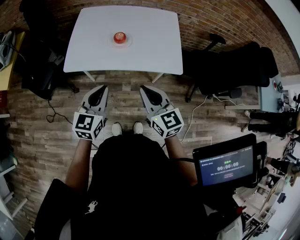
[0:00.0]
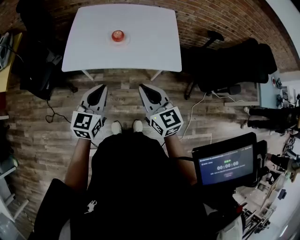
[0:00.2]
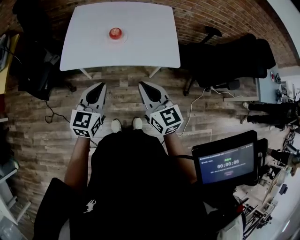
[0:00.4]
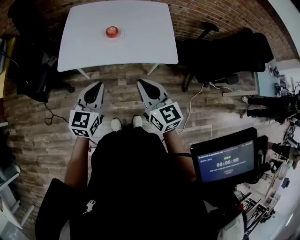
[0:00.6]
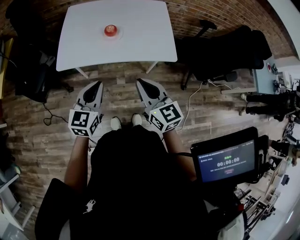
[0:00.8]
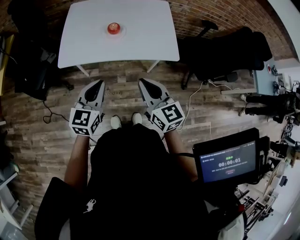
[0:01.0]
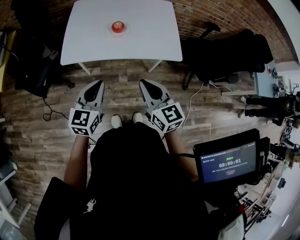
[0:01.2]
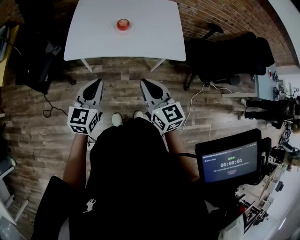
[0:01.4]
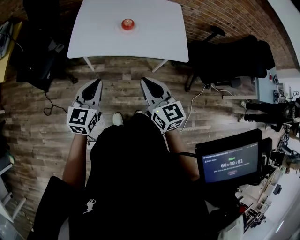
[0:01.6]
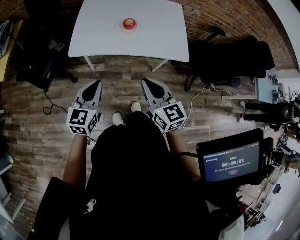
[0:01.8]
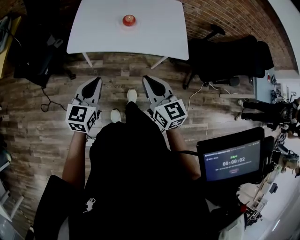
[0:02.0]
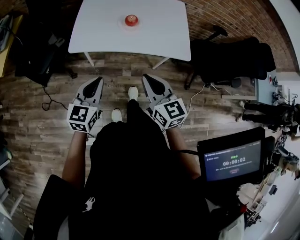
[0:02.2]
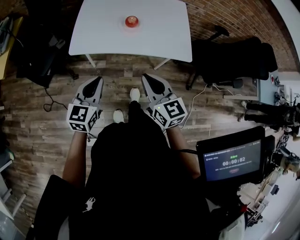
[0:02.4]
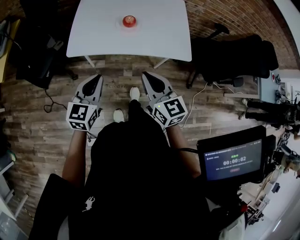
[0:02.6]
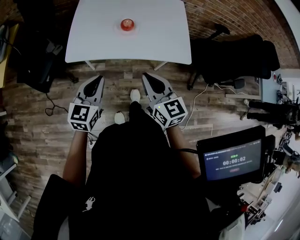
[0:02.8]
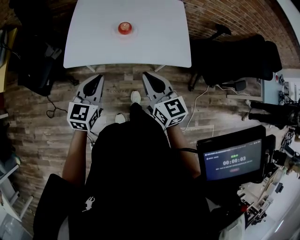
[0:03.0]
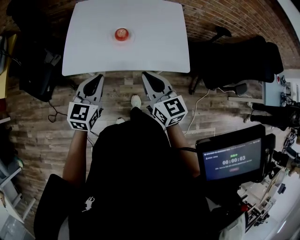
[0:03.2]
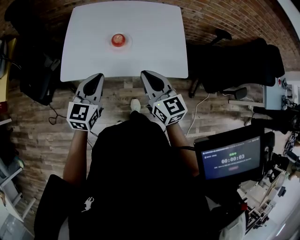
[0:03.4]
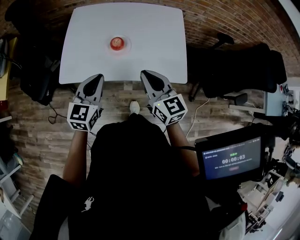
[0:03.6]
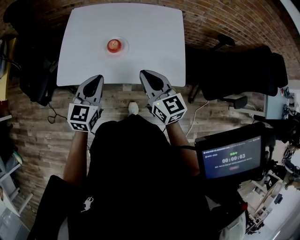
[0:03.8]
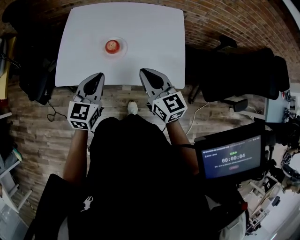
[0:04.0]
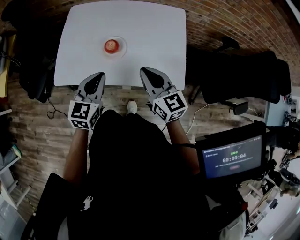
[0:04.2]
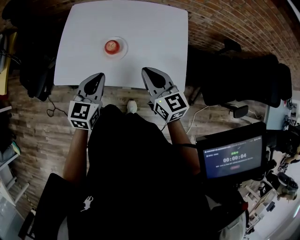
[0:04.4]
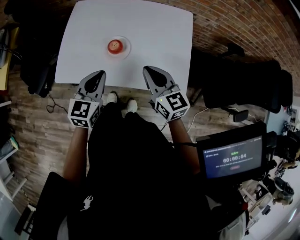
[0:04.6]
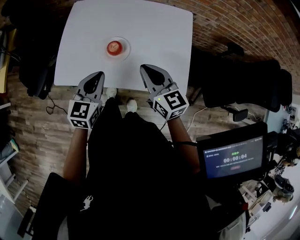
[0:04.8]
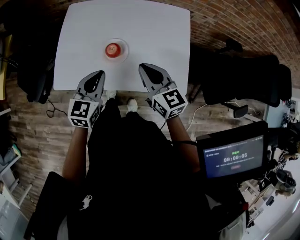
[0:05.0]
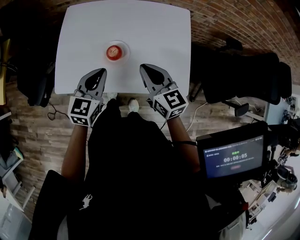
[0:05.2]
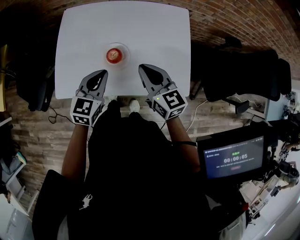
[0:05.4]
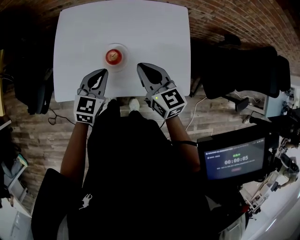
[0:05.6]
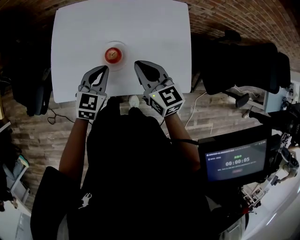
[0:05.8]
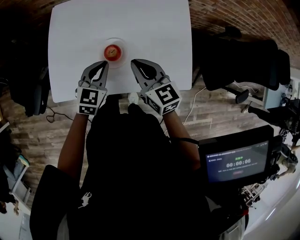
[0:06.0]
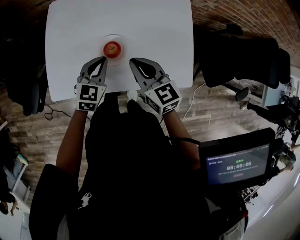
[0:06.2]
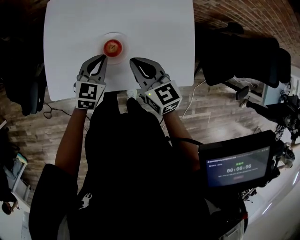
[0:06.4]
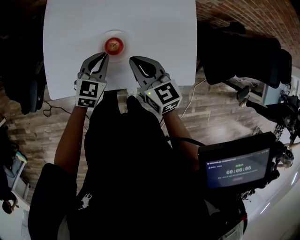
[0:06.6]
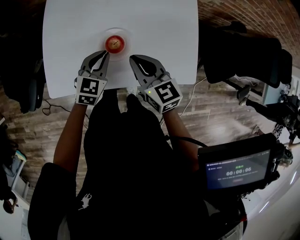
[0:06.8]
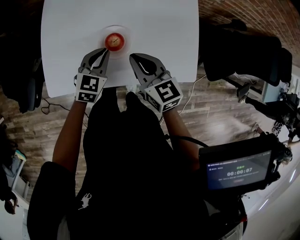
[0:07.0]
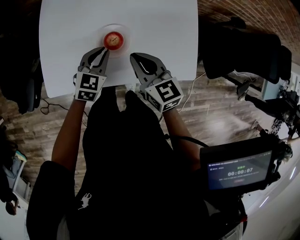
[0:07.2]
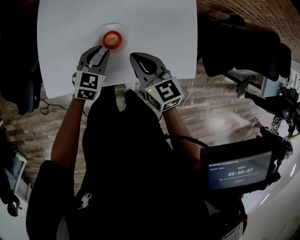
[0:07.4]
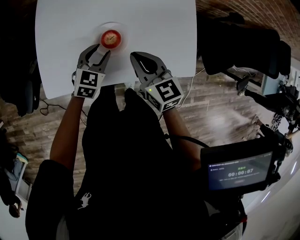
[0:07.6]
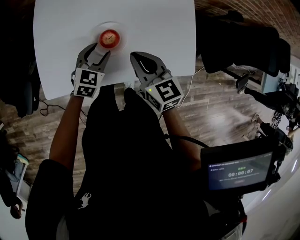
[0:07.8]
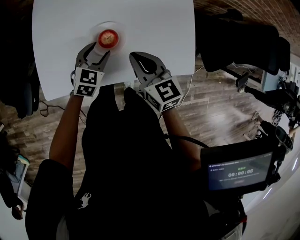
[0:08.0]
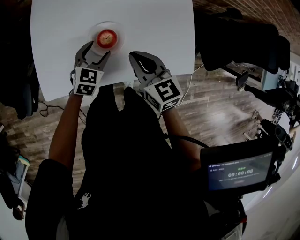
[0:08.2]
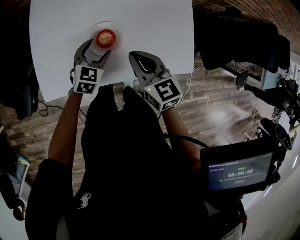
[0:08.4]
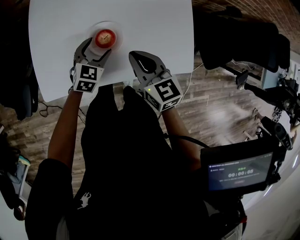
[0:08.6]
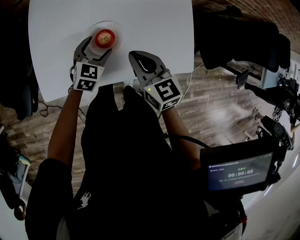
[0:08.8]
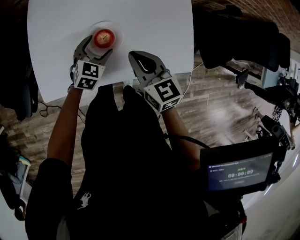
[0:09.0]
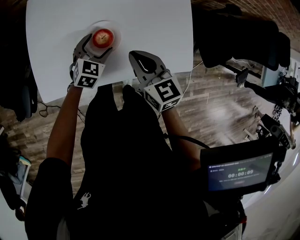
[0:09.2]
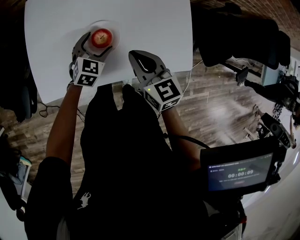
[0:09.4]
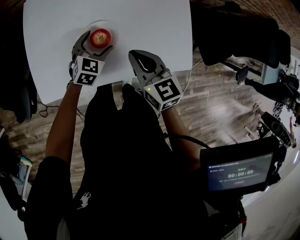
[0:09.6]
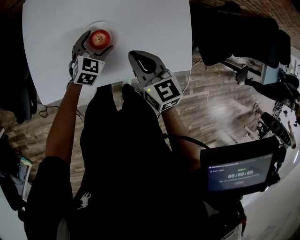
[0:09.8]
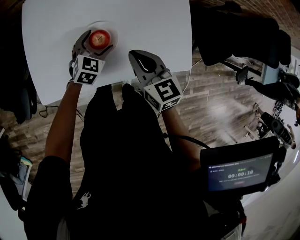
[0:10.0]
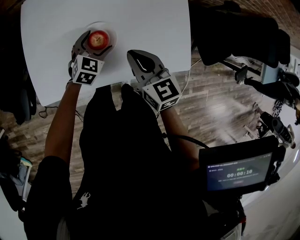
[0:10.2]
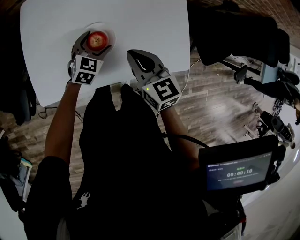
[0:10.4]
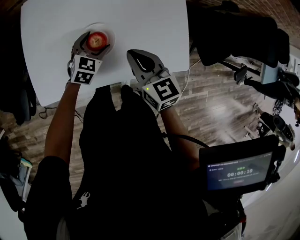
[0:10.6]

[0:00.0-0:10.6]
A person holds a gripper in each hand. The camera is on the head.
0:00.0 to 0:01.6: The two grippers go roughly 5 cm to the left.
0:01.6 to 0:03.0: Both grippers travel together forward, approximately 10 cm.
0:03.0 to 0:04.6: Both grippers travel together forward and to the right, about 20 cm.
0:04.6 to 0:06.0: The right gripper moves forward and to the left, approximately 10 cm; the left gripper heads forward and downward, covering roughly 15 cm.
0:06.0 to 0:07.6: The left gripper is displaced downward by roughly 10 cm, and opens its fingers.
0:07.6 to 0:09.0: The left gripper opens.
0:09.0 to 0:10.6: There are only small adjustments of the grippers.

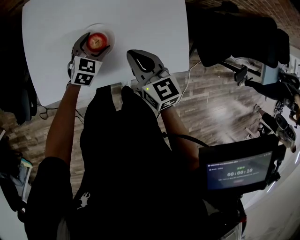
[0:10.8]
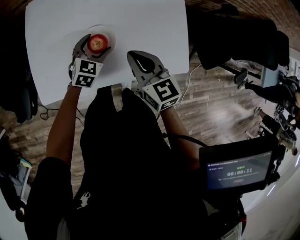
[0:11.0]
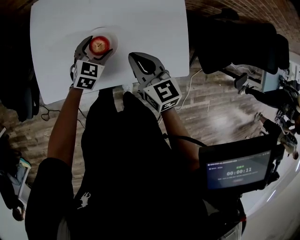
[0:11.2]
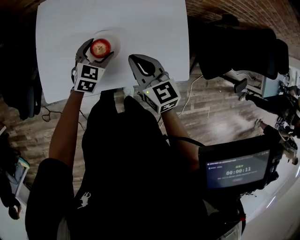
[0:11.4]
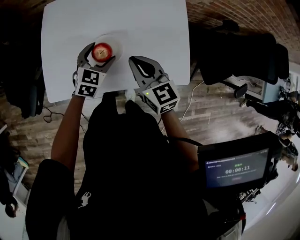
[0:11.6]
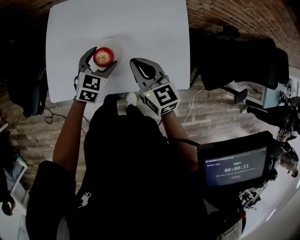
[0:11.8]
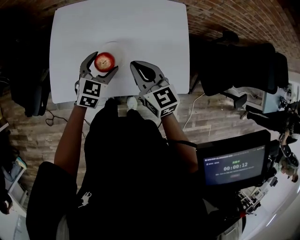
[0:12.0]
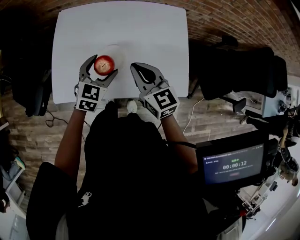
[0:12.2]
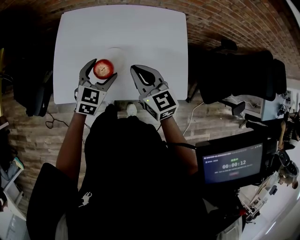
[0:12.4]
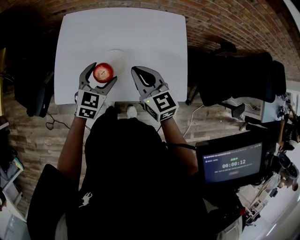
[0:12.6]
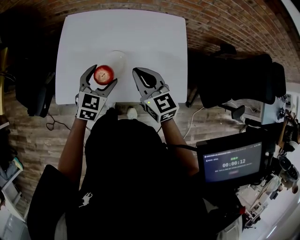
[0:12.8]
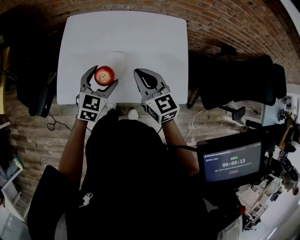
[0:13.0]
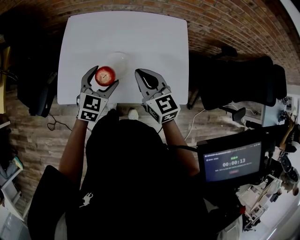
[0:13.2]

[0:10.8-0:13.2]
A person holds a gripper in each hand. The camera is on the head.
0:10.8 to 0:12.0: The right gripper is displaced upward by roughly 5 cm, while the left gripper moves upward, approximately 10 cm.
0:12.0 to 0:13.2: The left gripper moves roughly 5 cm.

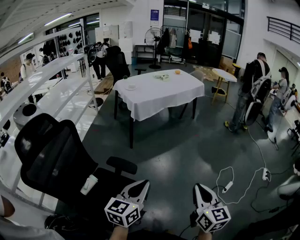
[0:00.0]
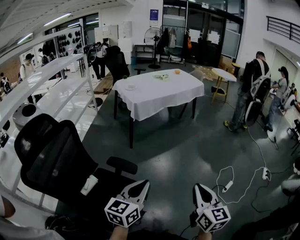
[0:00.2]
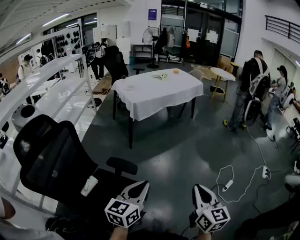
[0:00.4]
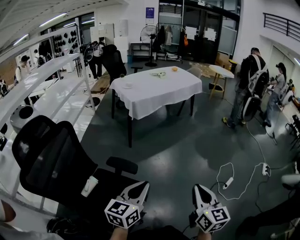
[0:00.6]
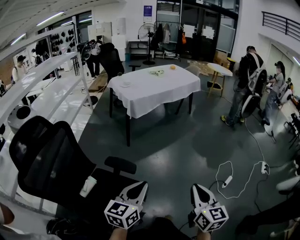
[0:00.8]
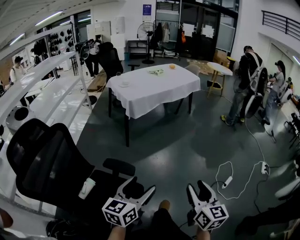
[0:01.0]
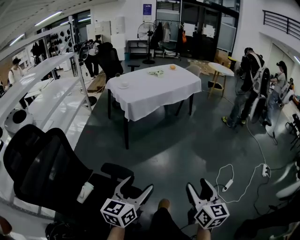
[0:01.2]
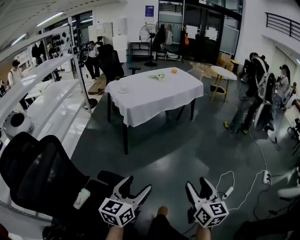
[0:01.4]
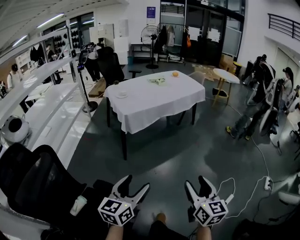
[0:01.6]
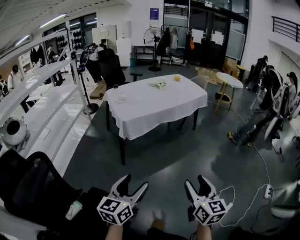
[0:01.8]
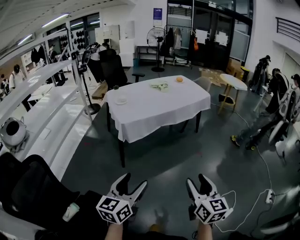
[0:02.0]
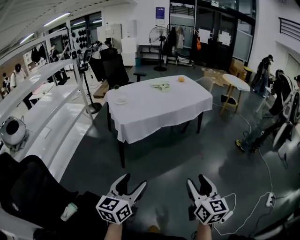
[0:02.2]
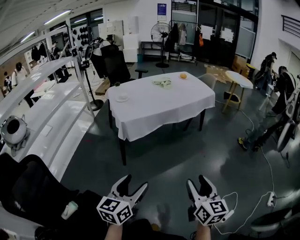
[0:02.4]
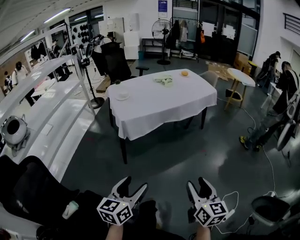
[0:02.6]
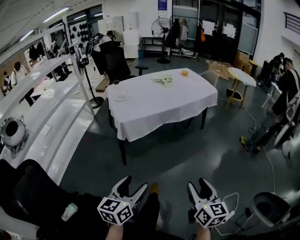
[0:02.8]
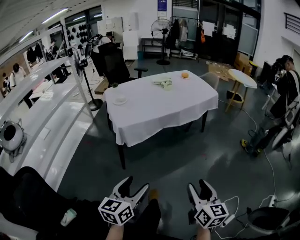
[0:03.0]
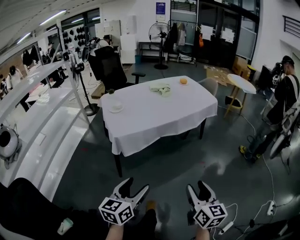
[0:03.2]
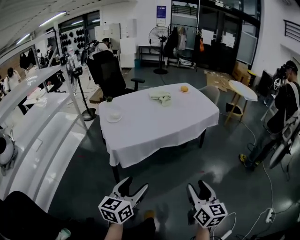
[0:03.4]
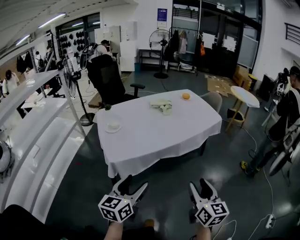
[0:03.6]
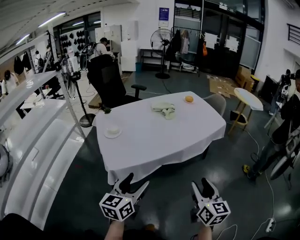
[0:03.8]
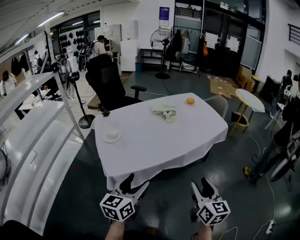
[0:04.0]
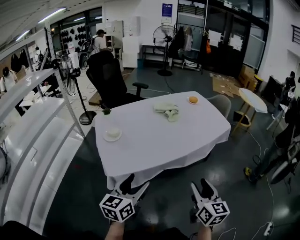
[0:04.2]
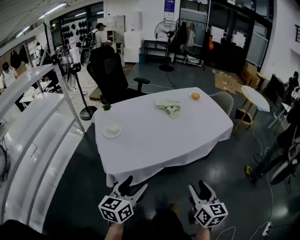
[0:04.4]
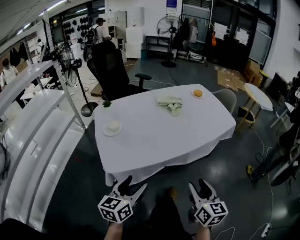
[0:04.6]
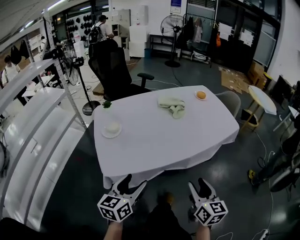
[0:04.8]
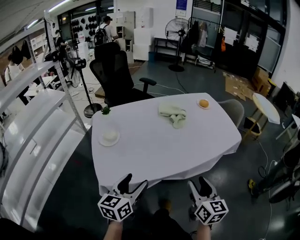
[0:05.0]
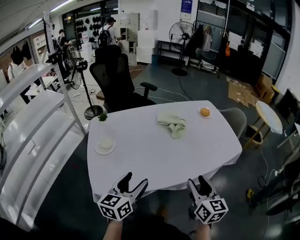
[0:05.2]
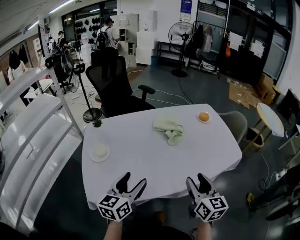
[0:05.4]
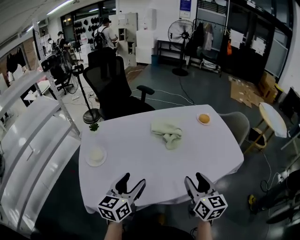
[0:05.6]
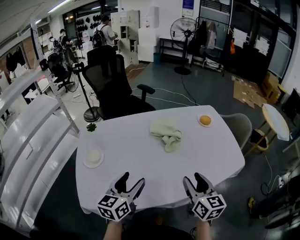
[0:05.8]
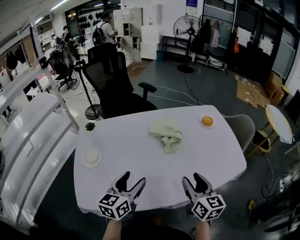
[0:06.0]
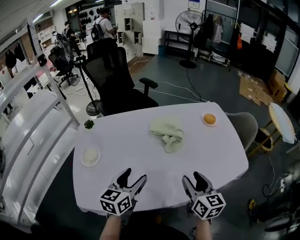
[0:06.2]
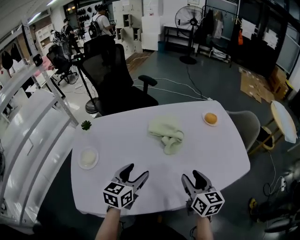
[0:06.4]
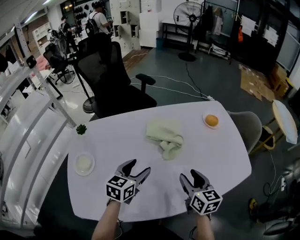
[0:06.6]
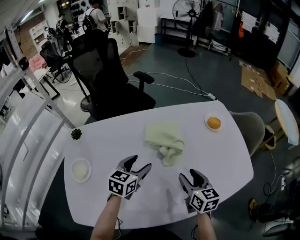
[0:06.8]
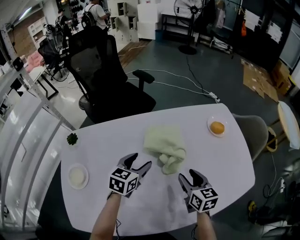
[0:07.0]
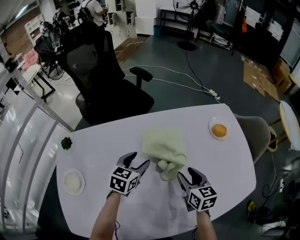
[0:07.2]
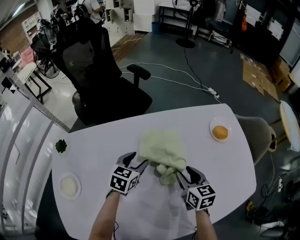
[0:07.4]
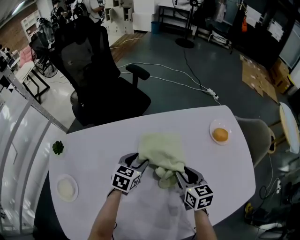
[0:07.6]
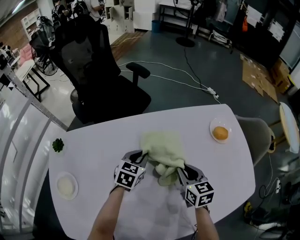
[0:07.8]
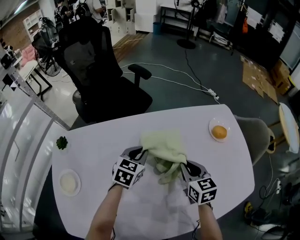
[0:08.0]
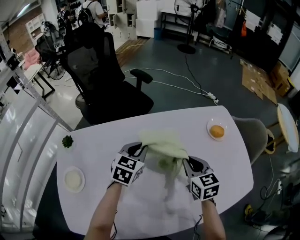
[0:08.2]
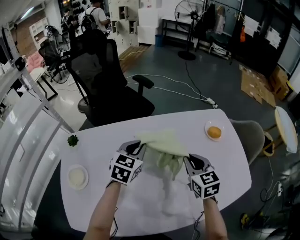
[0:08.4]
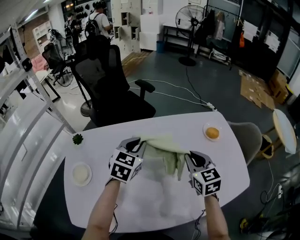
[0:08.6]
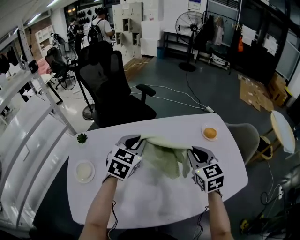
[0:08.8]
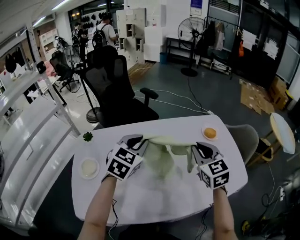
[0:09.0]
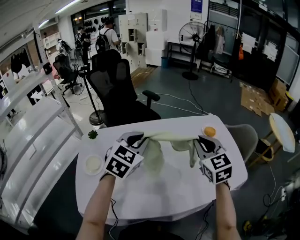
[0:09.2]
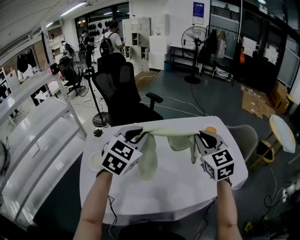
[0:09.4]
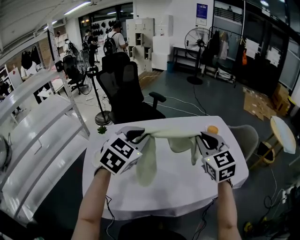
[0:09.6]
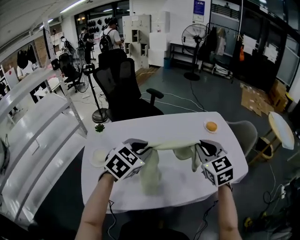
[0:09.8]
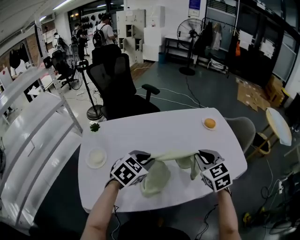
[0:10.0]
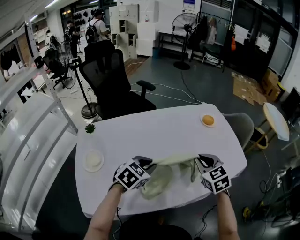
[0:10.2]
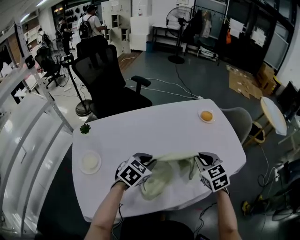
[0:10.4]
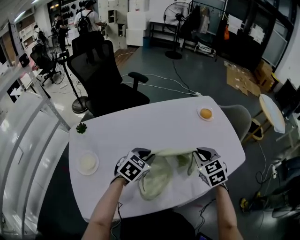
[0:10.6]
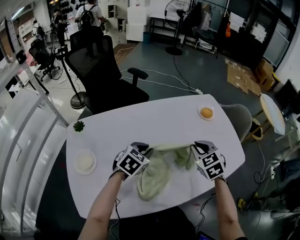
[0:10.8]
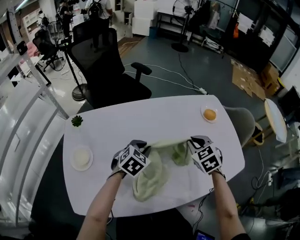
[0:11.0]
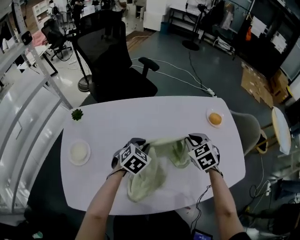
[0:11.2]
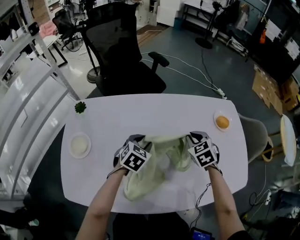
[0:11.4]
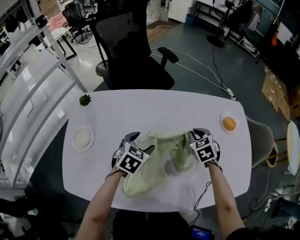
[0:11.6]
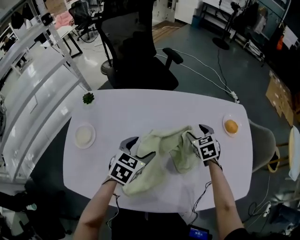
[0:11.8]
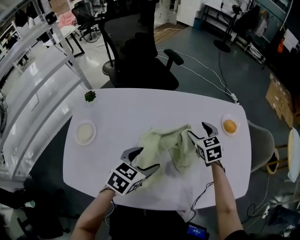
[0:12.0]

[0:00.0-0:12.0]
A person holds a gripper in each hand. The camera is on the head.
0:00.0 to 0:01.6: Both grippers travel together forward, roughly 20 cm. The left gripper opens up; the right gripper opens its fingers.
0:01.6 to 0:03.0: Both grippers travel together forward, roughly 20 cm.
0:03.0 to 0:04.4: Both grippers travel together forward, roughly 35 cm.
0:04.4 to 0:06.0: Both grippers travel together forward, roughly 35 cm.
0:06.0 to 0:07.6: The grippers both shift forward and downward by roughly 35 cm. The left gripper rotates approximately 30 degrees.
0:07.6 to 0:09.0: The left gripper goes about 30 cm upward and backward, changes its angle by approximately 30 degrees, and closes up. The right gripper heads upward, covering about 25 cm, swivels some 30 degrees, and closes.
0:09.0 to 0:10.4: The grippers both shift downward and backward by roughly 15 cm. The left gripper rotates some 30 degrees.
0:10.4 to 0:12.0: The right gripper is displaced forward by roughly 20 cm, and opens, while the left gripper reaches roughly 10 cm forward, then returns, swivels roughly 30 degrees, and opens its fingers.
